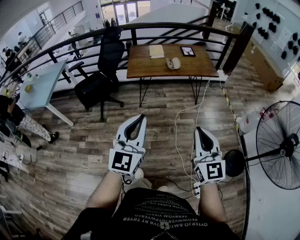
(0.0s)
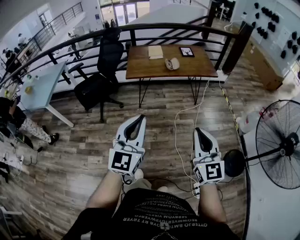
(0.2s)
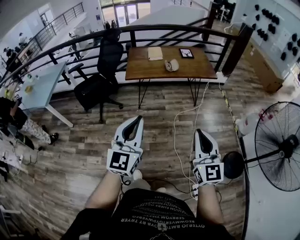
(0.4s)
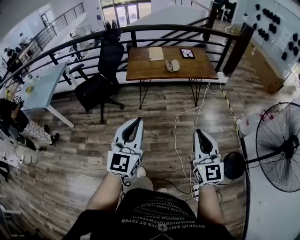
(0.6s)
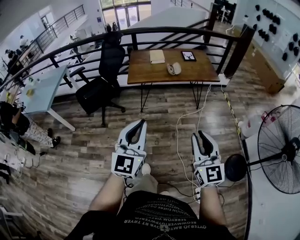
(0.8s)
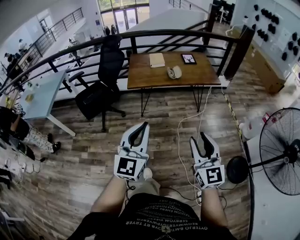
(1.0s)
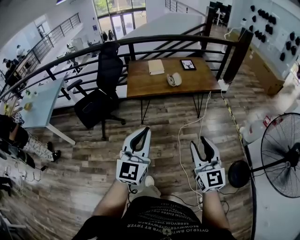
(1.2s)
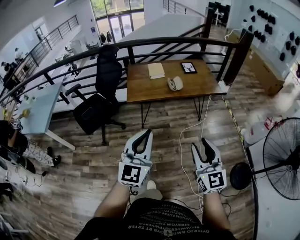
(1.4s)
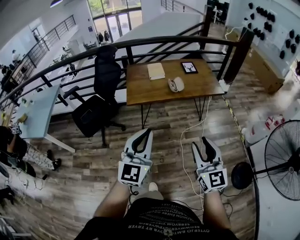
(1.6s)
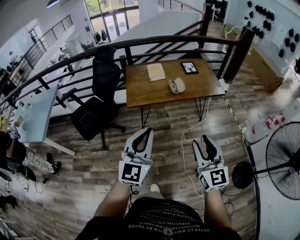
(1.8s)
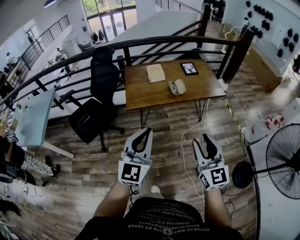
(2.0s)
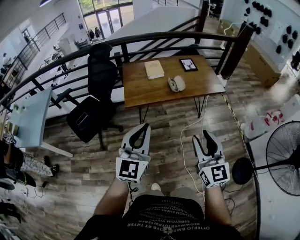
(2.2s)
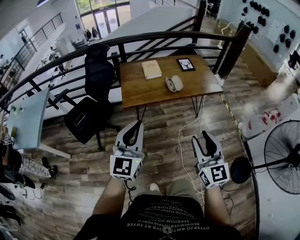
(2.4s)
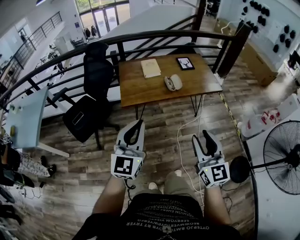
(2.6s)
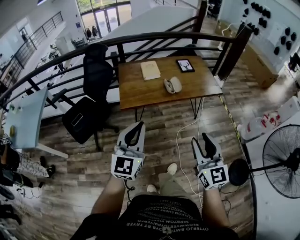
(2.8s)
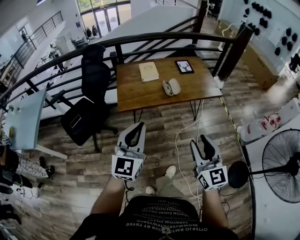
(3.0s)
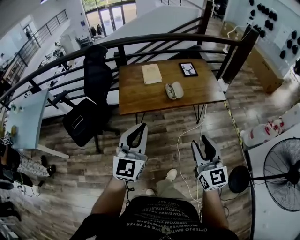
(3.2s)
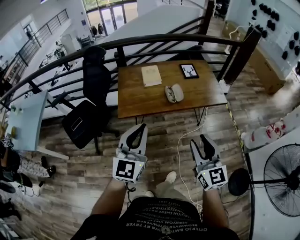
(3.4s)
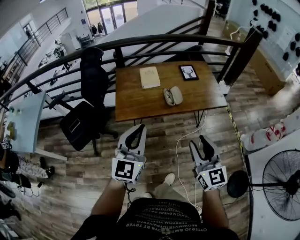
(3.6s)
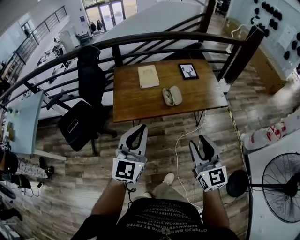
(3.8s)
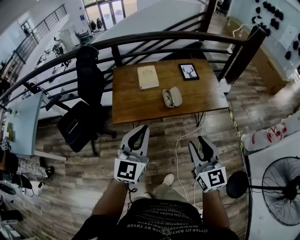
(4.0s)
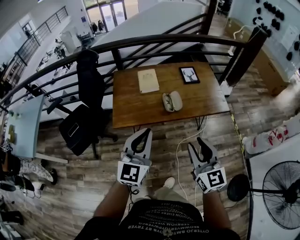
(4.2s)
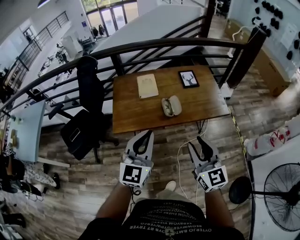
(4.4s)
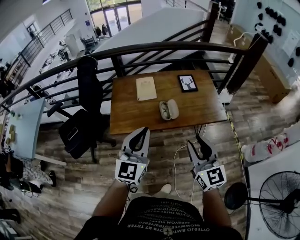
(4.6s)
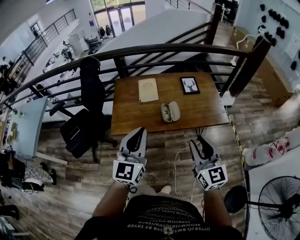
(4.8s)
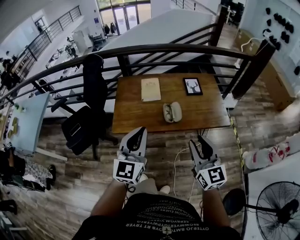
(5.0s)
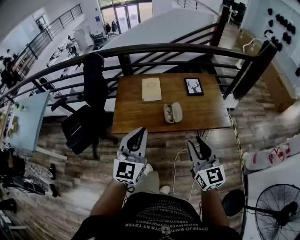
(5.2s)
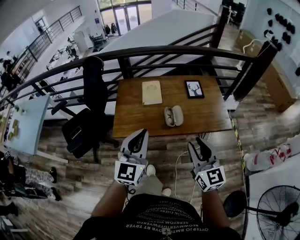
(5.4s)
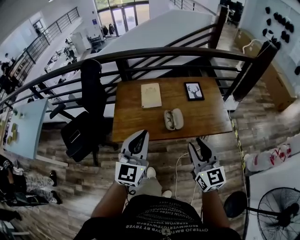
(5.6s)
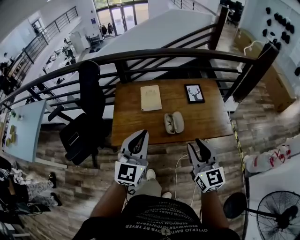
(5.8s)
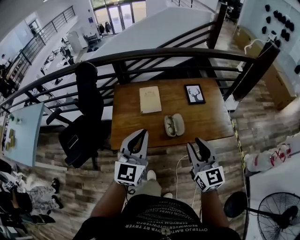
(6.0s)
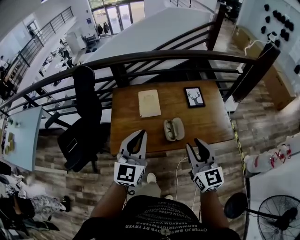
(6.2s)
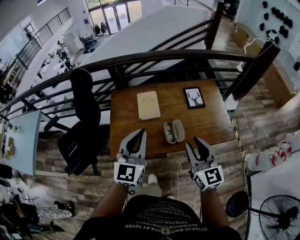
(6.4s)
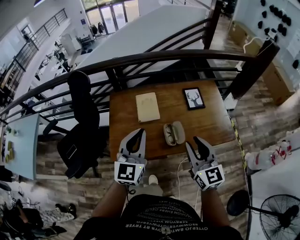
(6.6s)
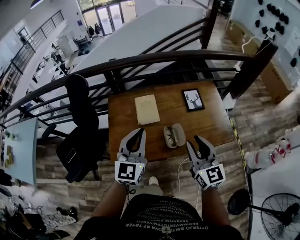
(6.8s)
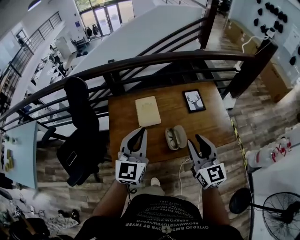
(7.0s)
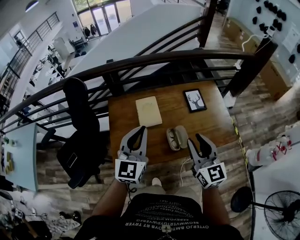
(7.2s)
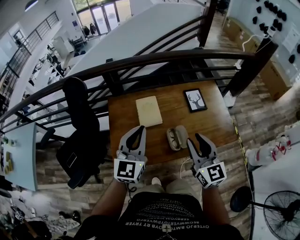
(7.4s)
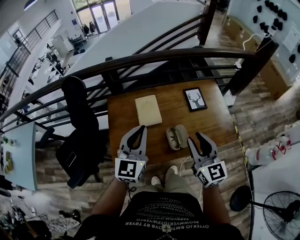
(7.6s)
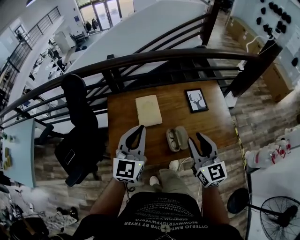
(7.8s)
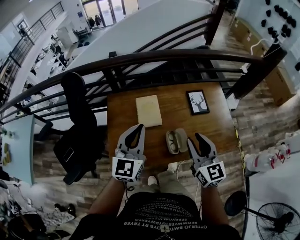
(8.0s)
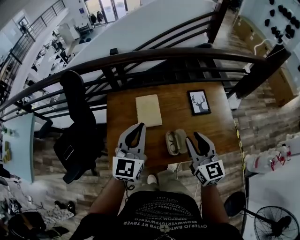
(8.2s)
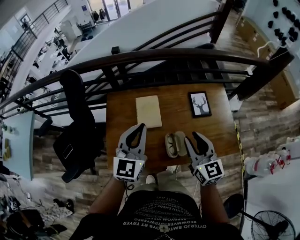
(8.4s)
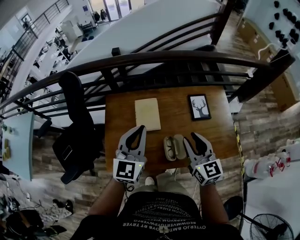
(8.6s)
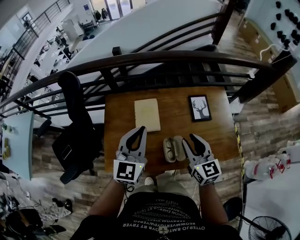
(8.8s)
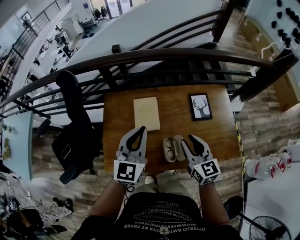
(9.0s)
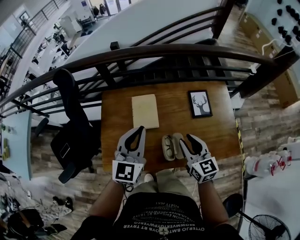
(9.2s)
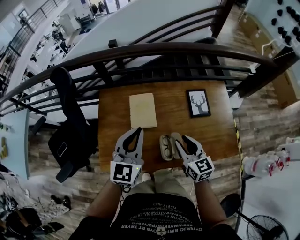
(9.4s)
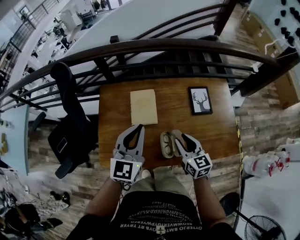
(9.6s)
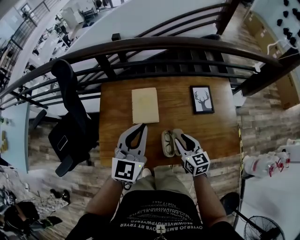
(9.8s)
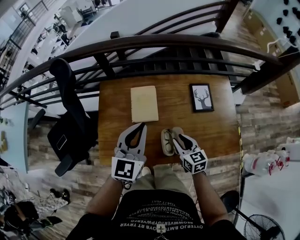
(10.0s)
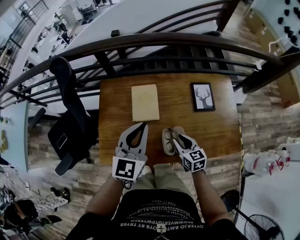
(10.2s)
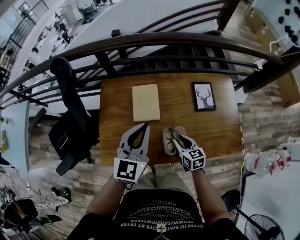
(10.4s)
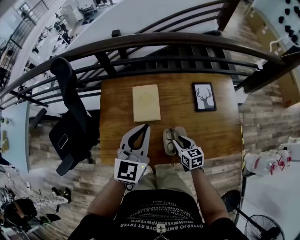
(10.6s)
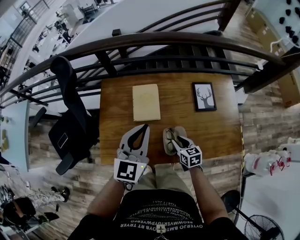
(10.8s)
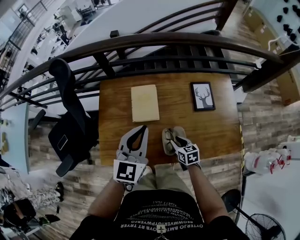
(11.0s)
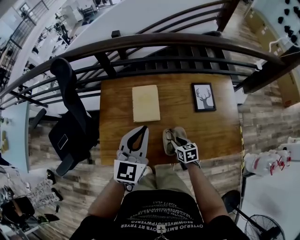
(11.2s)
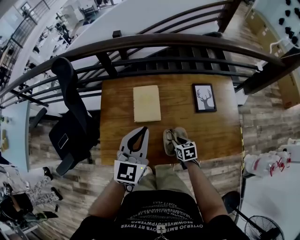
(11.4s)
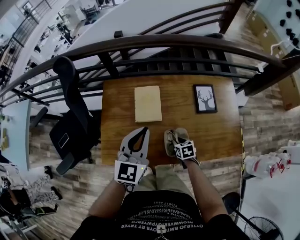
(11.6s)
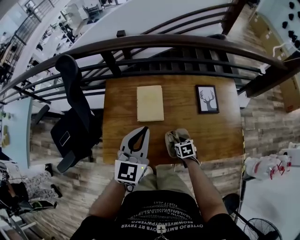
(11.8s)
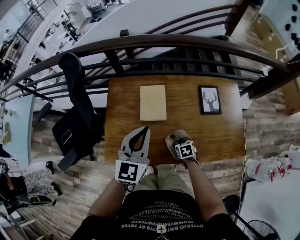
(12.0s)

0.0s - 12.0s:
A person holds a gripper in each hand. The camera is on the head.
0.0s - 1.6s: The grippers both shift forward by roughly 20 cm. The right gripper opens.
1.6s - 3.0s: Both grippers travel together forward, some 15 cm.
3.0s - 4.4s: The left gripper moves forward and to the right, approximately 20 cm, while the right gripper goes roughly 20 cm forward.
4.4s - 6.0s: The grippers both shift forward by about 15 cm.
6.0s - 7.6s: The grippers both shift forward by about 15 cm.
7.6s - 9.0s: The right gripper goes some 15 cm forward and downward; the left gripper goes approximately 10 cm forward.
9.0s - 10.4s: The right gripper heads downward, covering some 20 cm, and turns by about 20 degrees.
10.4s - 12.0s: The right gripper goes approximately 10 cm downward, and changes its angle by approximately 30 degrees.

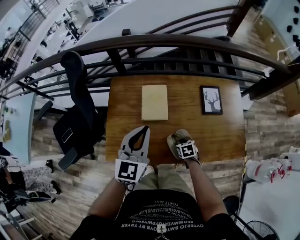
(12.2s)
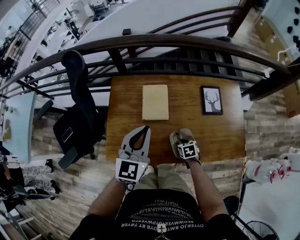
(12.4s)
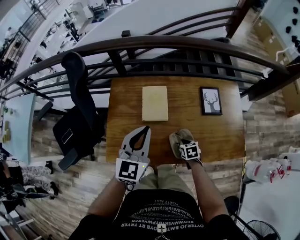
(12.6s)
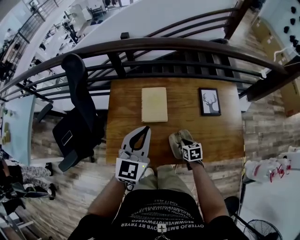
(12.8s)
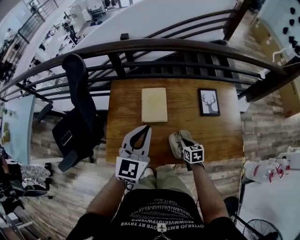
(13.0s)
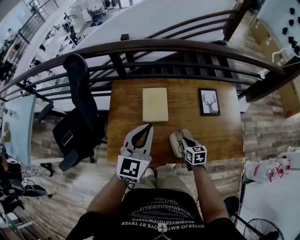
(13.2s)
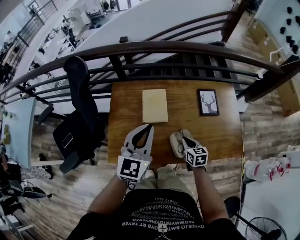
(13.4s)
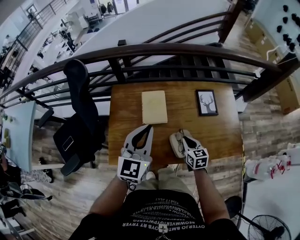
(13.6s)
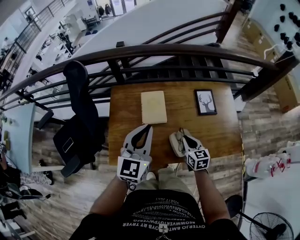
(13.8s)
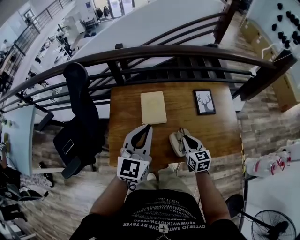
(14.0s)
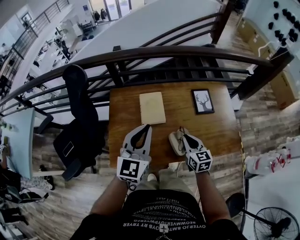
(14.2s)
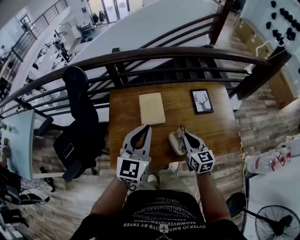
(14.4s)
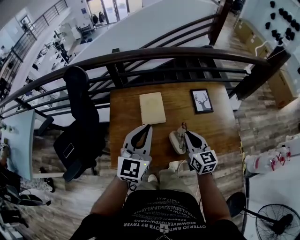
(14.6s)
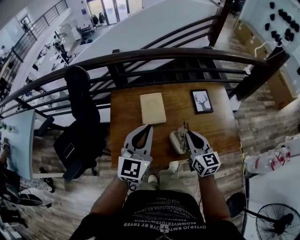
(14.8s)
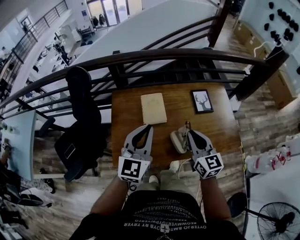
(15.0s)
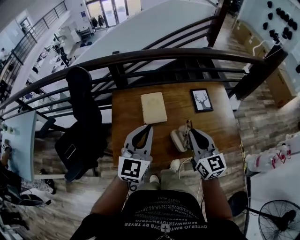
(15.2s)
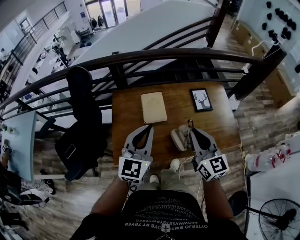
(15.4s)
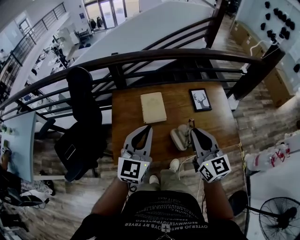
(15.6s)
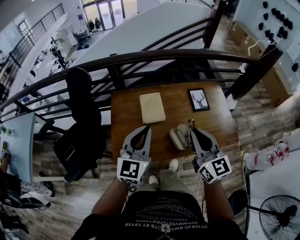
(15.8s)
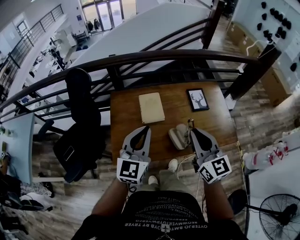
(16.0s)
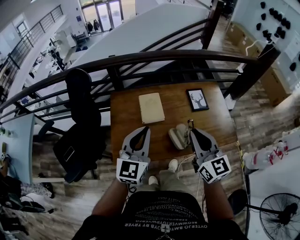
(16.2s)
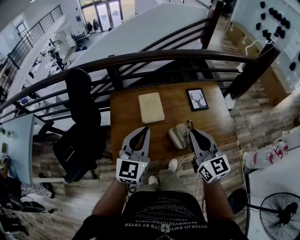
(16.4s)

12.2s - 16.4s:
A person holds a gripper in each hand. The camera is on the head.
12.2s - 13.6s: The right gripper heads upward, covering about 15 cm, and rotates about 30 degrees.
13.6s - 15.0s: The left gripper shifts by approximately 5 cm. Meanwhile the right gripper moves upward, roughly 20 cm, and rotates roughly 30 degrees.
15.0s - 16.4s: The right gripper is displaced upward and backward by about 10 cm.

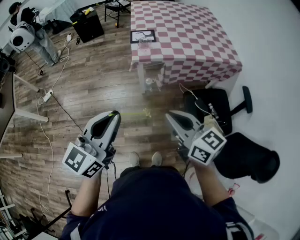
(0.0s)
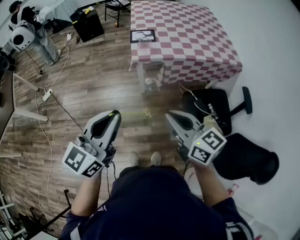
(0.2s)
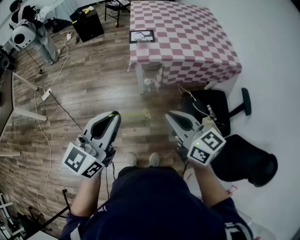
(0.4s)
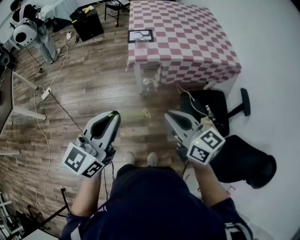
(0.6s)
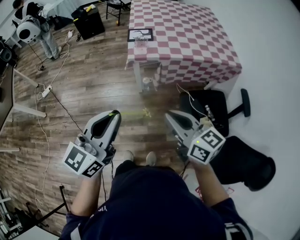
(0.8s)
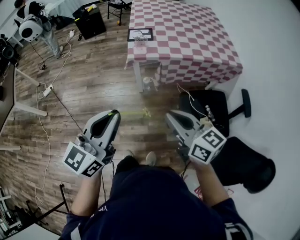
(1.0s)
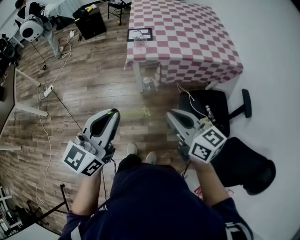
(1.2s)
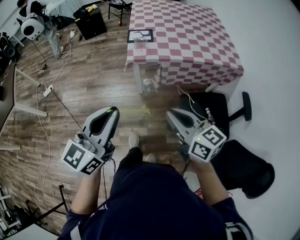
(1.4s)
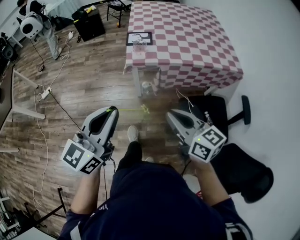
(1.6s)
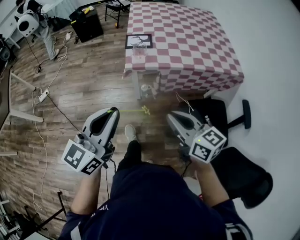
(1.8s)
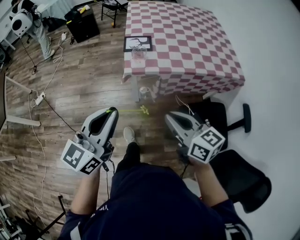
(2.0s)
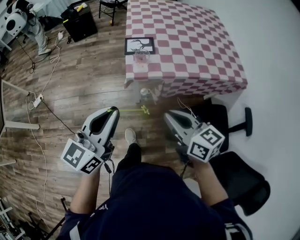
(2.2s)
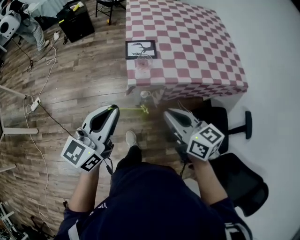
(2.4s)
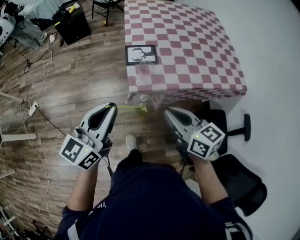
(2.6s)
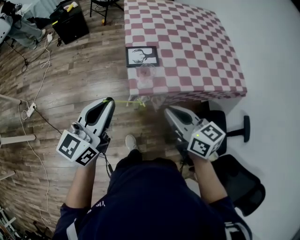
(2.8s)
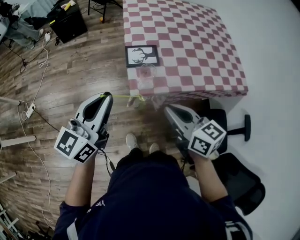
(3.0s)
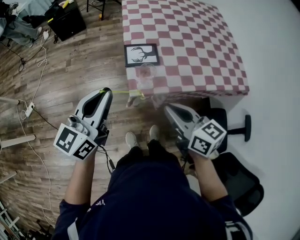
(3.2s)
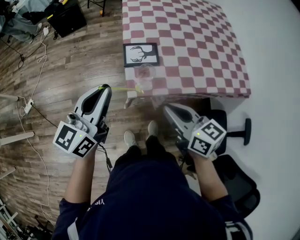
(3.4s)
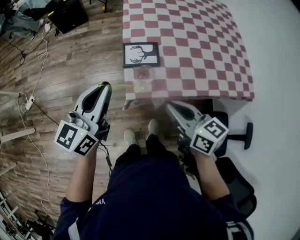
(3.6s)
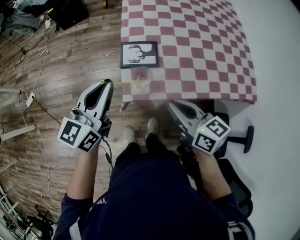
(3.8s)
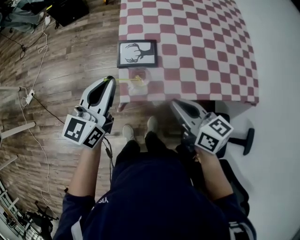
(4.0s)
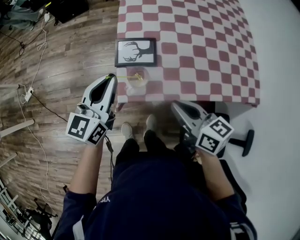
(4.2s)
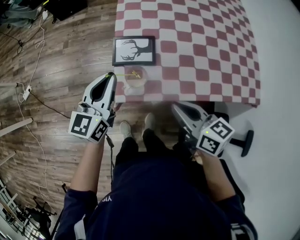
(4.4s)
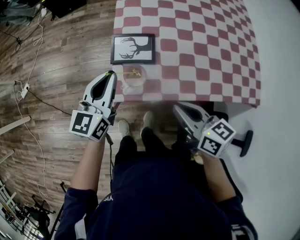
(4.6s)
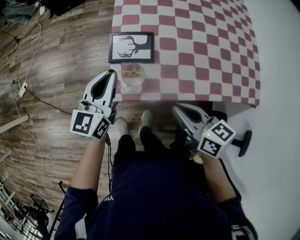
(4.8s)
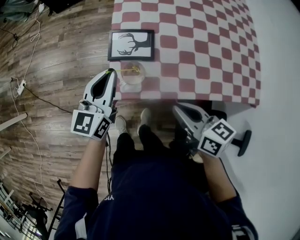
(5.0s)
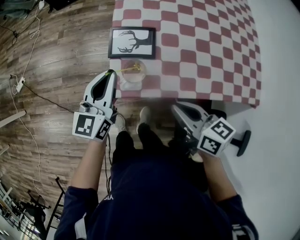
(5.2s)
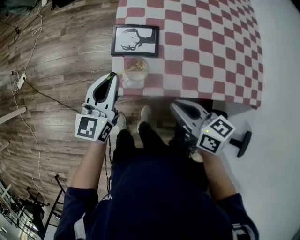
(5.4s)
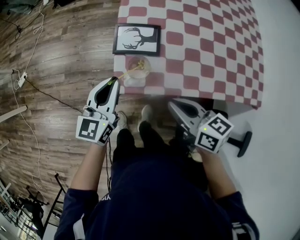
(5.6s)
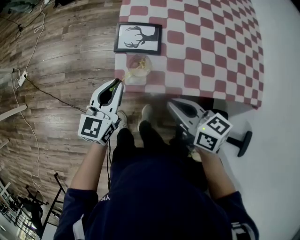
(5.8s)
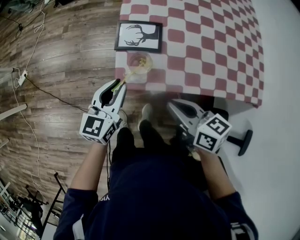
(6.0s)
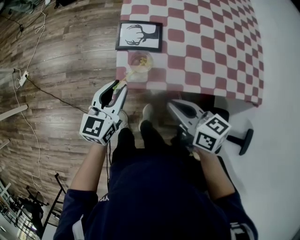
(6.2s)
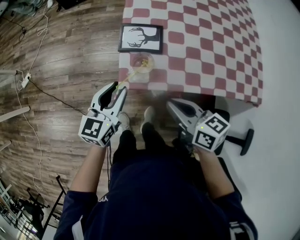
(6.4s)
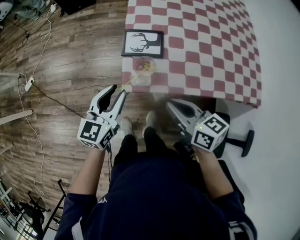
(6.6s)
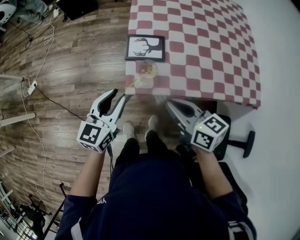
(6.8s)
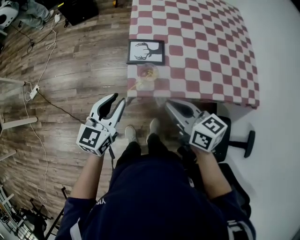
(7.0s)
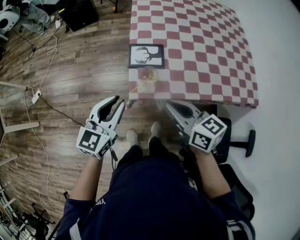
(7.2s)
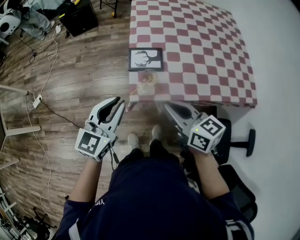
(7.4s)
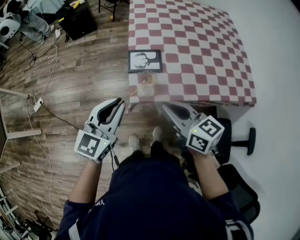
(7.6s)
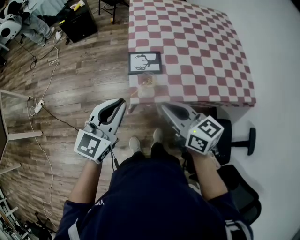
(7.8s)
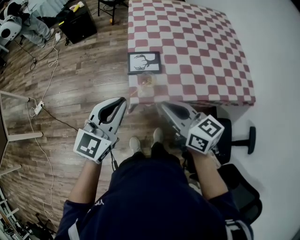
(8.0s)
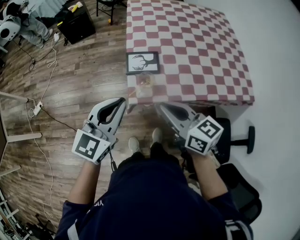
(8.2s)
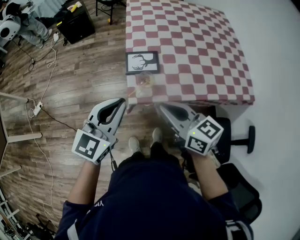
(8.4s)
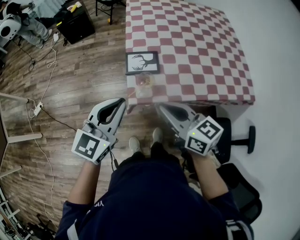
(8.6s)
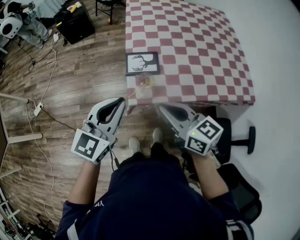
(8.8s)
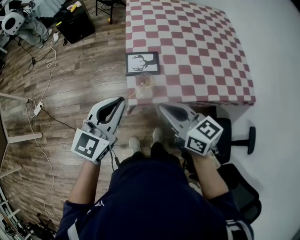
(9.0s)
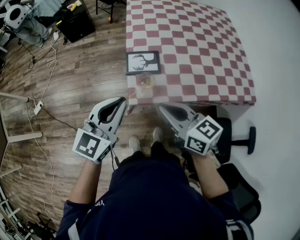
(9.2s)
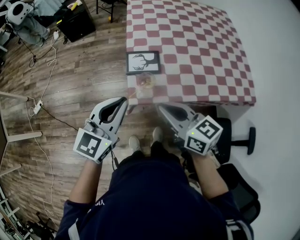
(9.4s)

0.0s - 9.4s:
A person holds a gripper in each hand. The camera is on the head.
0.0s - 1.6s: The right gripper travels to the right and forward by approximately 10 cm, while the left gripper moves to the right, roughly 5 cm.
1.6s - 3.2s: The grippers both shift forward by some 35 cm.
3.2s - 4.8s: The right gripper travels to the right, downward and forward by approximately 20 cm. The left gripper shifts about 25 cm downward, forward and to the right.
4.8s - 6.2s: The right gripper ends up about 5 cm from where it was. Meanwhile the left gripper moves backward and downward, some 10 cm, and opens.
6.2s - 7.8s: The right gripper shifts approximately 15 cm upward and to the left, and turns by about 20 degrees. The left gripper shifts roughly 20 cm upward.
7.8s - 9.4s: There are only small adjustments of the grippers.
